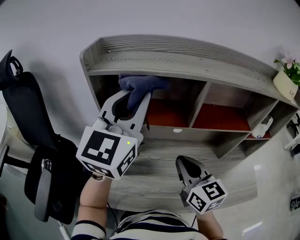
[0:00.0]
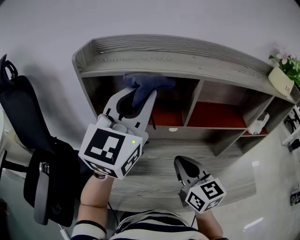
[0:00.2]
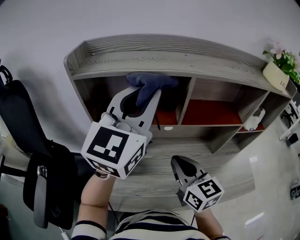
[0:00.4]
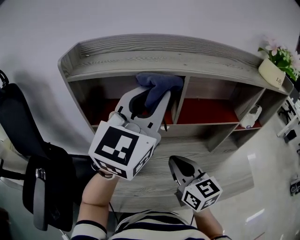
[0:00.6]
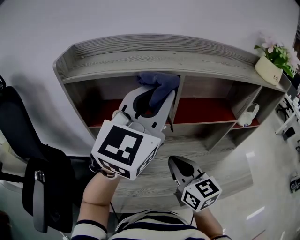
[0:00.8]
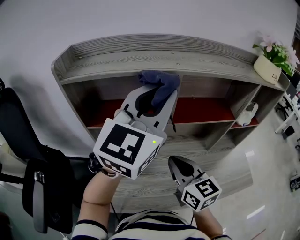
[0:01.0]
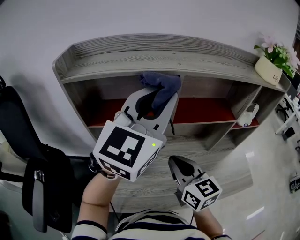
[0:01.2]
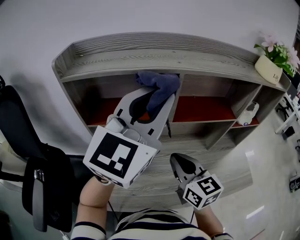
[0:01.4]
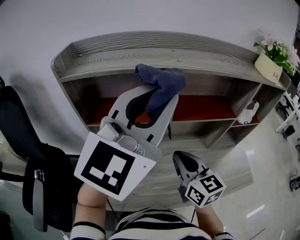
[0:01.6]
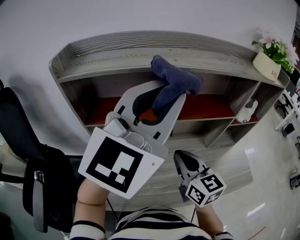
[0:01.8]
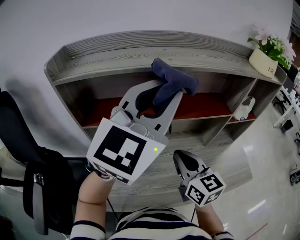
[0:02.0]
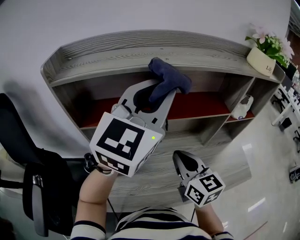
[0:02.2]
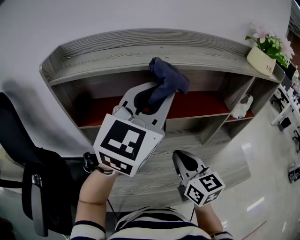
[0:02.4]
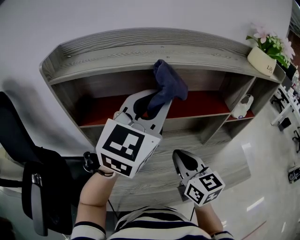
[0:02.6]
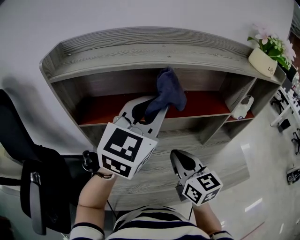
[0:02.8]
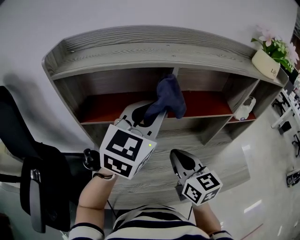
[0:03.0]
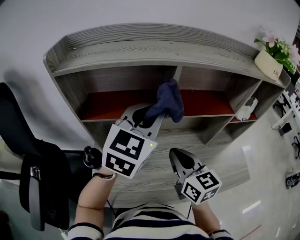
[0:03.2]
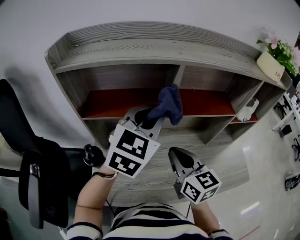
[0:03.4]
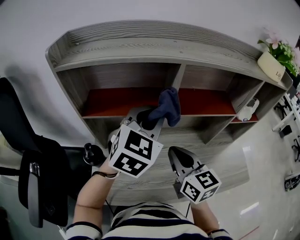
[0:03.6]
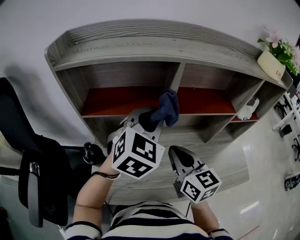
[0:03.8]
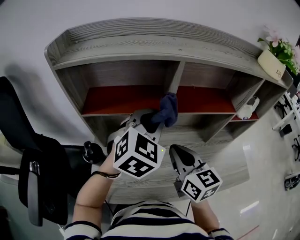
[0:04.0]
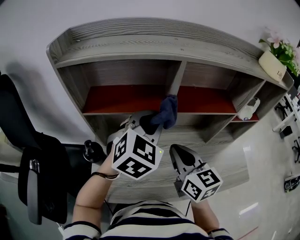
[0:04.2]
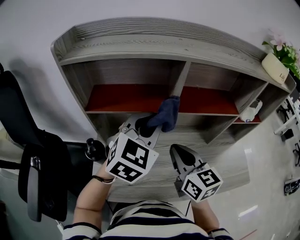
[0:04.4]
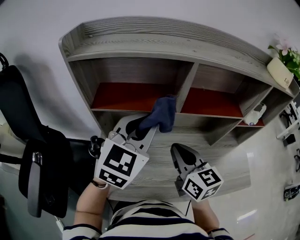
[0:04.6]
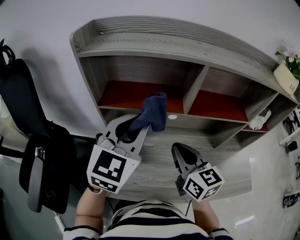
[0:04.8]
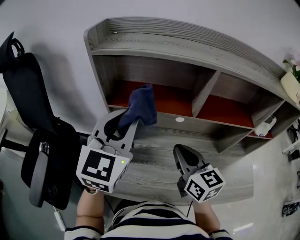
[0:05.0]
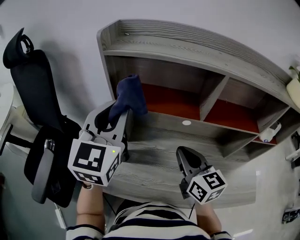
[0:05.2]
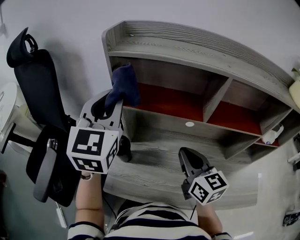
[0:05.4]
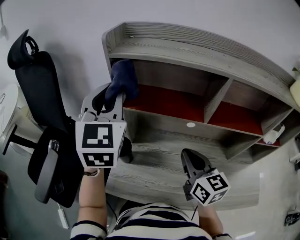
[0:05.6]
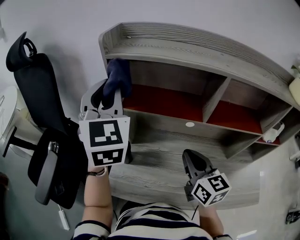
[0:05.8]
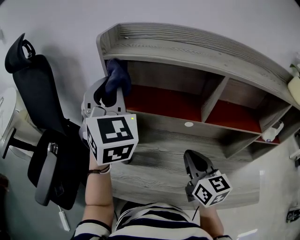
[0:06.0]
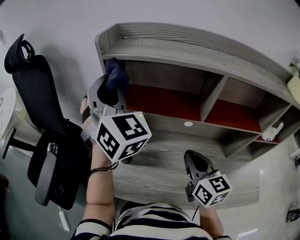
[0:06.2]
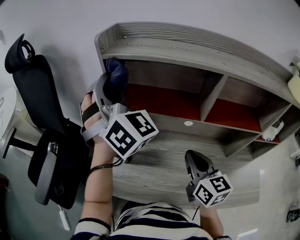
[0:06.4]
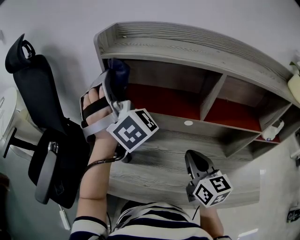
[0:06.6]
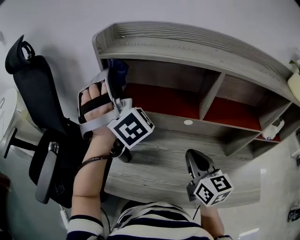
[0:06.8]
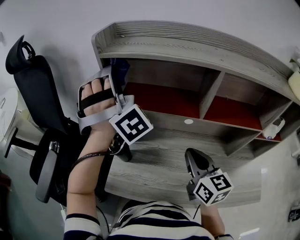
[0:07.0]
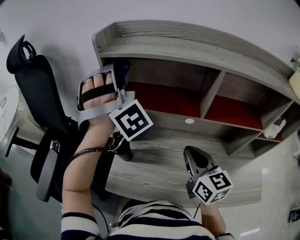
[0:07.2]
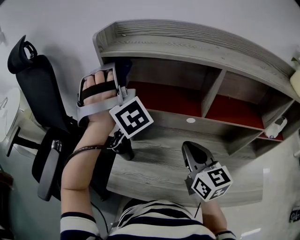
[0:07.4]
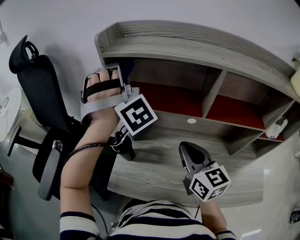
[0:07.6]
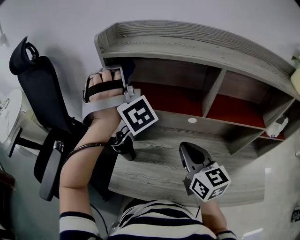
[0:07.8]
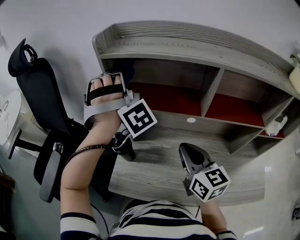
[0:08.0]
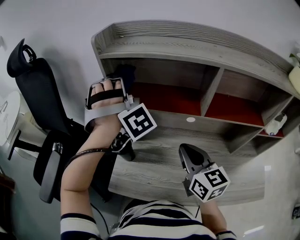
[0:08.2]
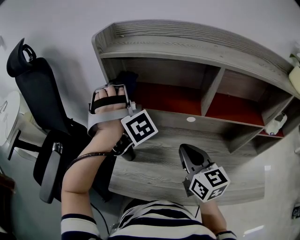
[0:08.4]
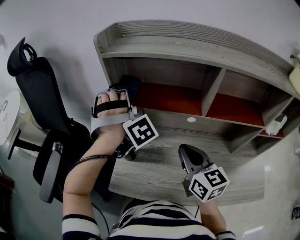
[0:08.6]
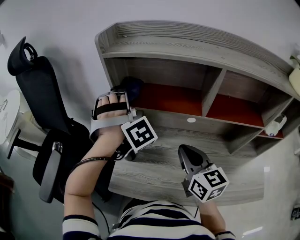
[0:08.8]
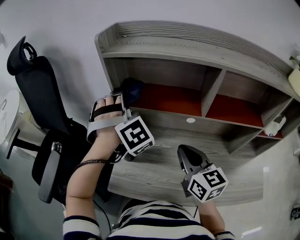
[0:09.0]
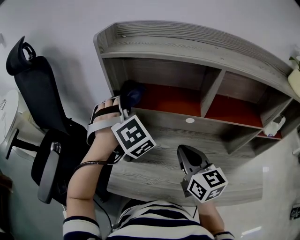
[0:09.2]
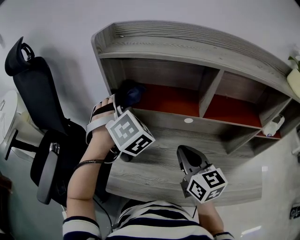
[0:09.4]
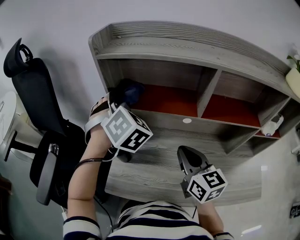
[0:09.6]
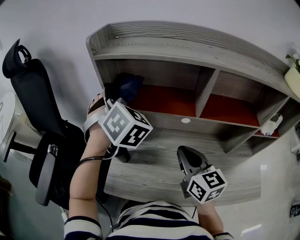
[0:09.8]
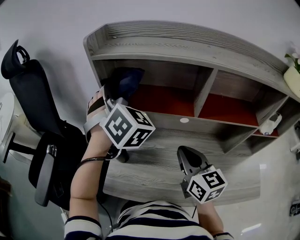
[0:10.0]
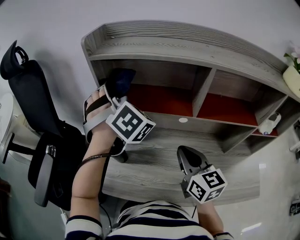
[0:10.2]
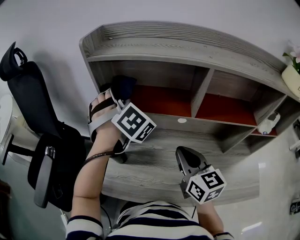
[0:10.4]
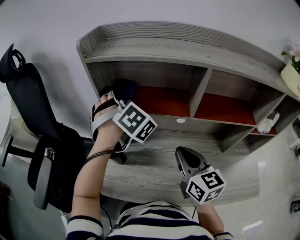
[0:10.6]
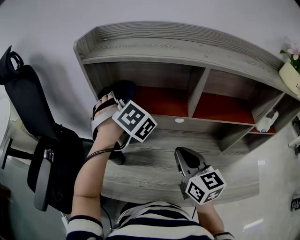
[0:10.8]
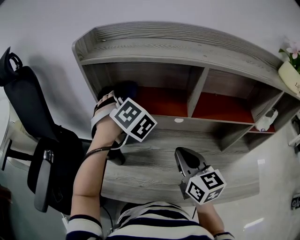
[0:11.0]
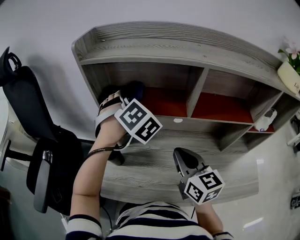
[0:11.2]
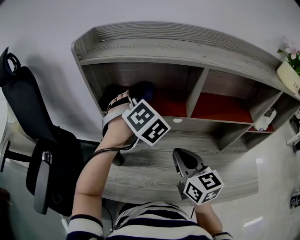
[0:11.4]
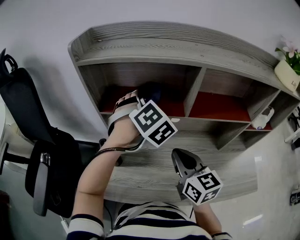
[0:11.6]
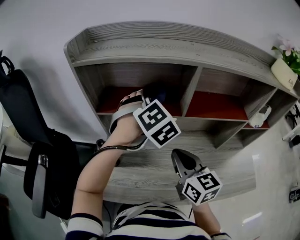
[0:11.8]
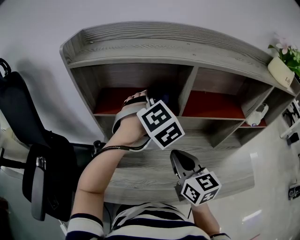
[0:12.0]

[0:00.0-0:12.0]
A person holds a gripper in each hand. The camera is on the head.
0:00.0 to 0:01.6: The left gripper travels to the right by roughly 10 cm.
0:01.6 to 0:03.0: The left gripper goes roughly 15 cm downward and forward.
0:03.0 to 0:04.4: The left gripper moves downward, some 5 cm.
0:04.4 to 0:06.0: The left gripper changes place by about 25 cm, and changes its angle by approximately 50 degrees.
0:06.0 to 0:07.6: The left gripper rotates around the line of its fingers by some 60 degrees, clockwise from behind.
0:07.6 to 0:09.0: The left gripper moves downward, approximately 10 cm, and rotates roughly 20 degrees.
0:10.4 to 0:12.0: The left gripper moves to the right and backward, some 20 cm, and turns by about 40 degrees.

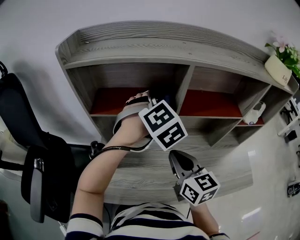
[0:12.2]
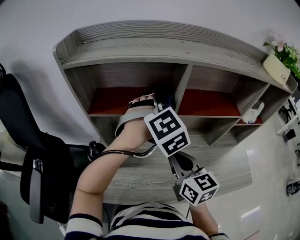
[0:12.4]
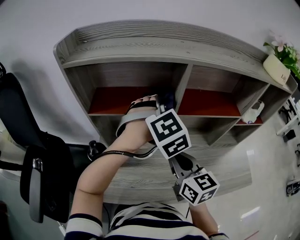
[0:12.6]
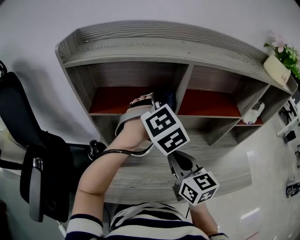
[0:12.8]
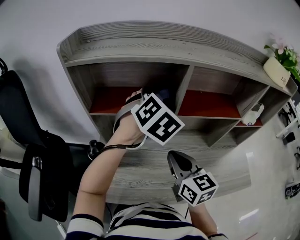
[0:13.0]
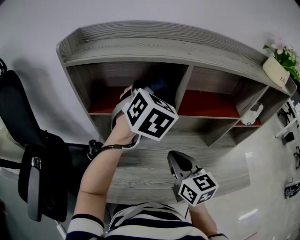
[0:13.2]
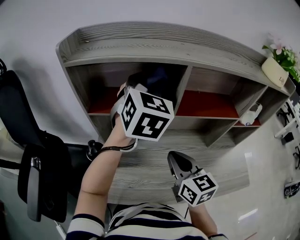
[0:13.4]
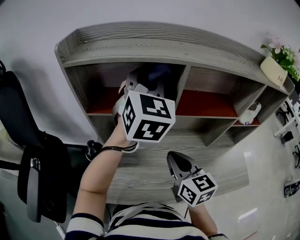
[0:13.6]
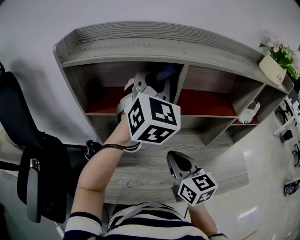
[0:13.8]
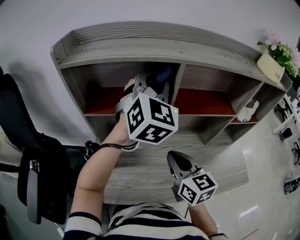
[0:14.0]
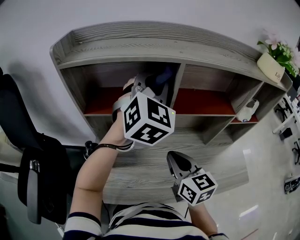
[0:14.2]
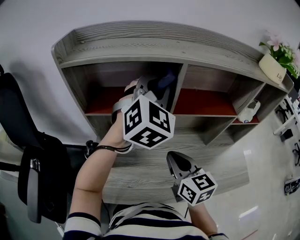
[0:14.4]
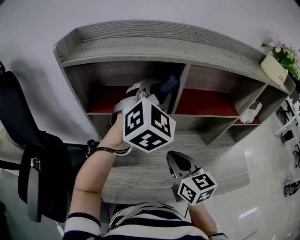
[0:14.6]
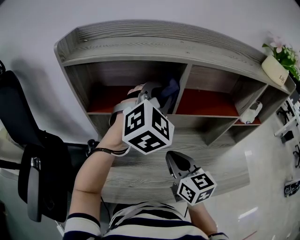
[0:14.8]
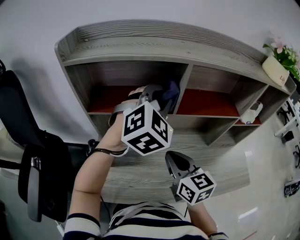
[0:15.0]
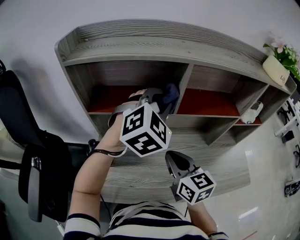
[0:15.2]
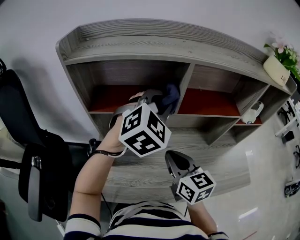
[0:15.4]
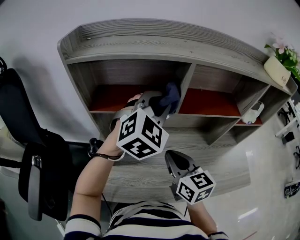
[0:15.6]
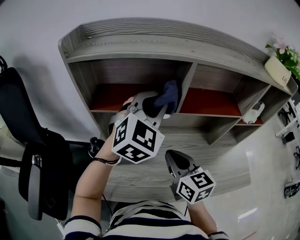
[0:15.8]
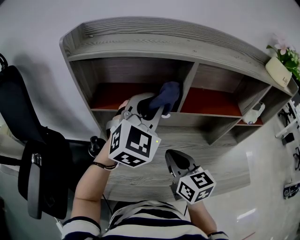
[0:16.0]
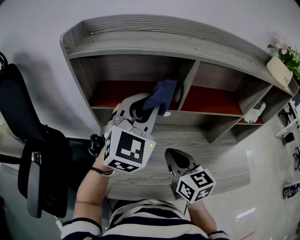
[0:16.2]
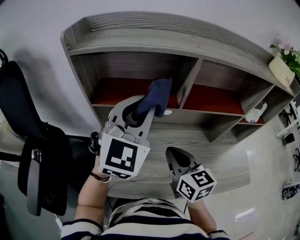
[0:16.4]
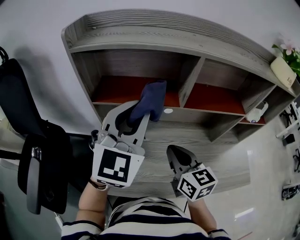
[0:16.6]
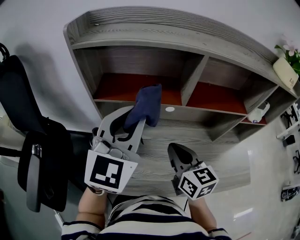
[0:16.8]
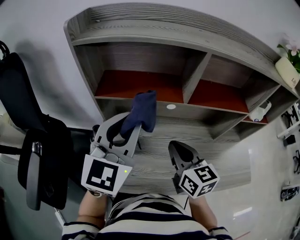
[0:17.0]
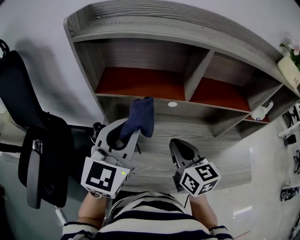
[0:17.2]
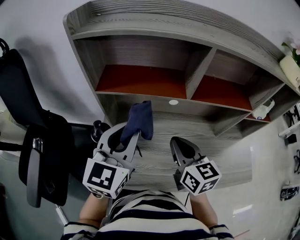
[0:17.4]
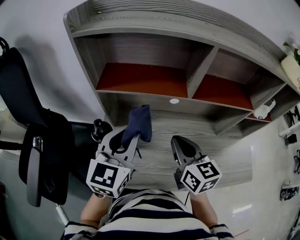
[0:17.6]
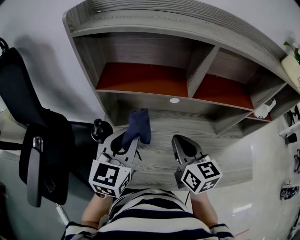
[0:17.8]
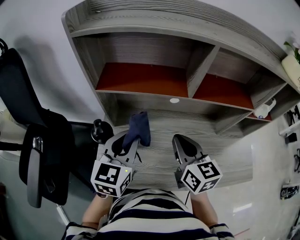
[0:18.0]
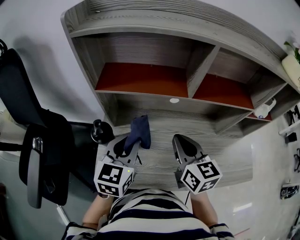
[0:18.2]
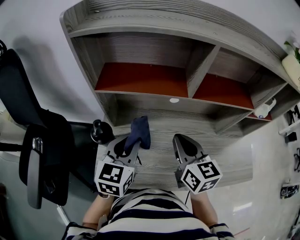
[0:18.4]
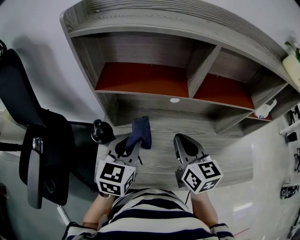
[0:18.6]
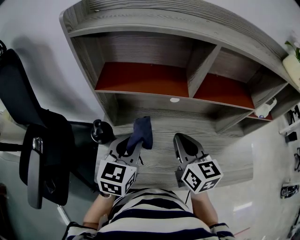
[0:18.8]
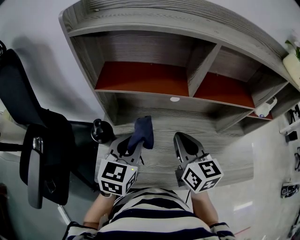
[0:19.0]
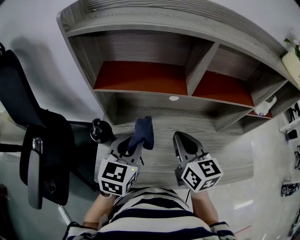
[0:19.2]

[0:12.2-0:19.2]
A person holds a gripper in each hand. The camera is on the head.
0:12.2 to 0:13.6: The left gripper is displaced upward by some 15 cm, and points its fingers approximately 30 degrees further upward.
0:13.6 to 0:15.0: The left gripper travels downward by some 5 cm, and turns by some 30 degrees.
0:15.0 to 0:16.4: The left gripper is displaced to the left and backward by roughly 10 cm, and rotates about 30 degrees.
0:16.4 to 0:17.8: The left gripper heads downward, to the left and backward, covering approximately 15 cm, and rotates approximately 30 degrees.
0:17.8 to 0:19.2: The left gripper moves about 5 cm.

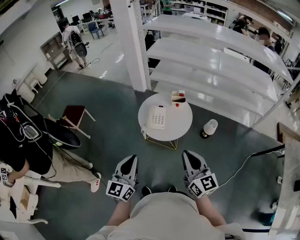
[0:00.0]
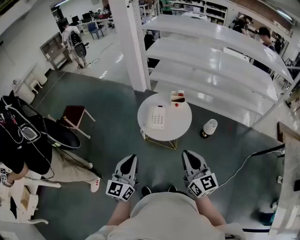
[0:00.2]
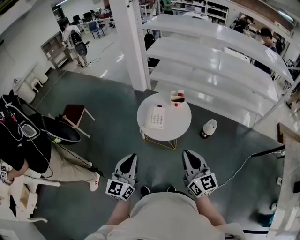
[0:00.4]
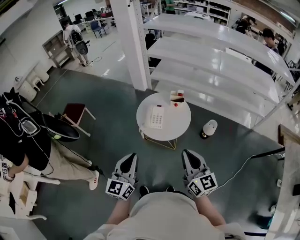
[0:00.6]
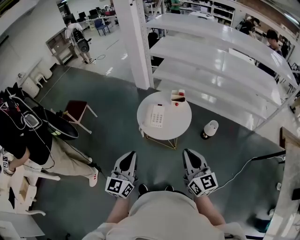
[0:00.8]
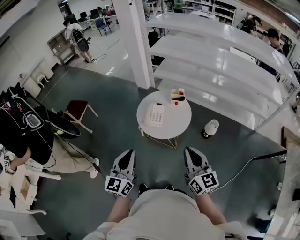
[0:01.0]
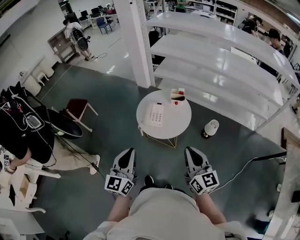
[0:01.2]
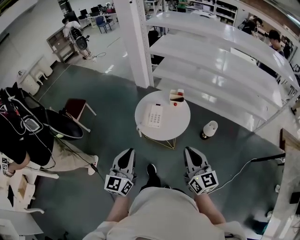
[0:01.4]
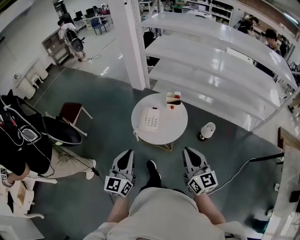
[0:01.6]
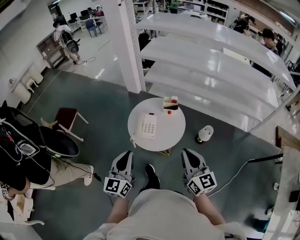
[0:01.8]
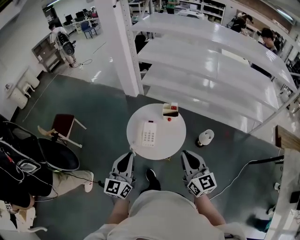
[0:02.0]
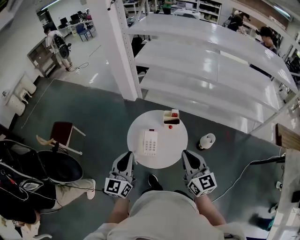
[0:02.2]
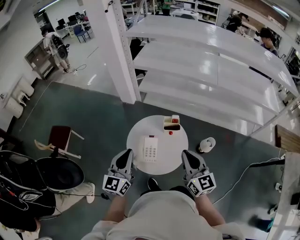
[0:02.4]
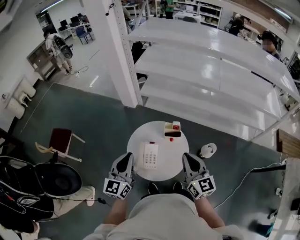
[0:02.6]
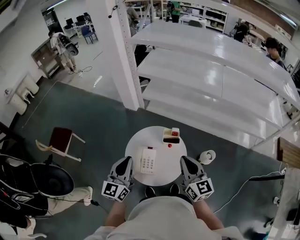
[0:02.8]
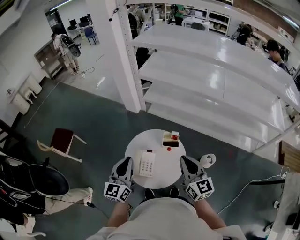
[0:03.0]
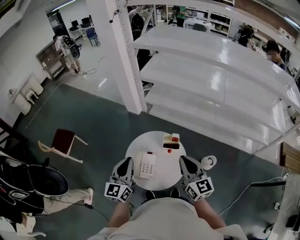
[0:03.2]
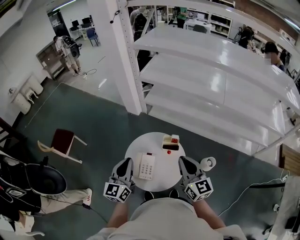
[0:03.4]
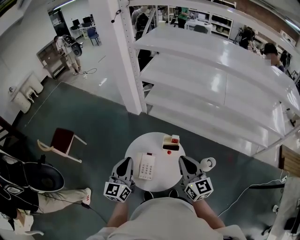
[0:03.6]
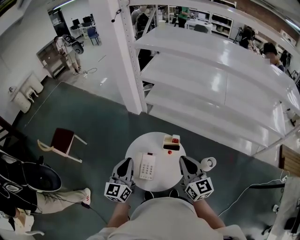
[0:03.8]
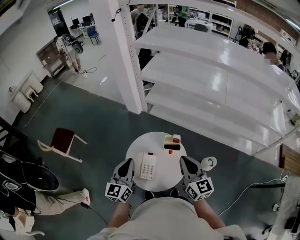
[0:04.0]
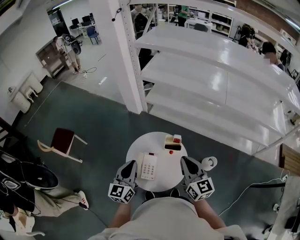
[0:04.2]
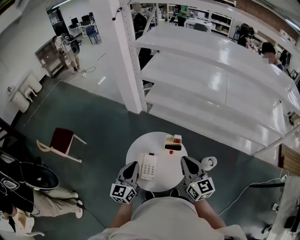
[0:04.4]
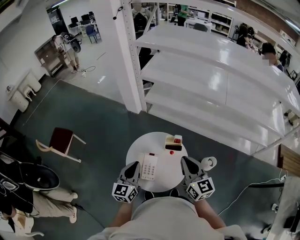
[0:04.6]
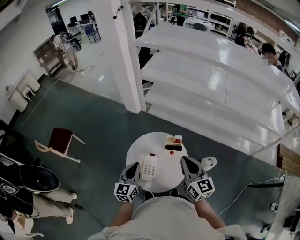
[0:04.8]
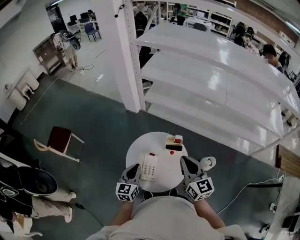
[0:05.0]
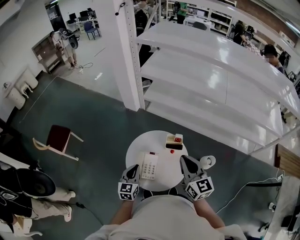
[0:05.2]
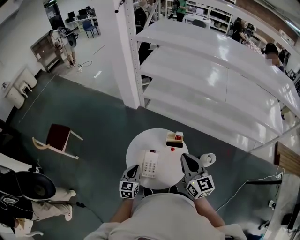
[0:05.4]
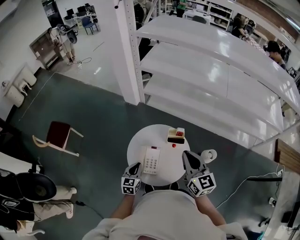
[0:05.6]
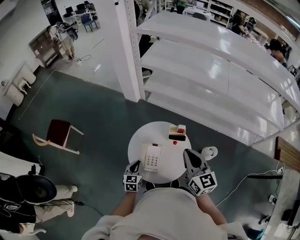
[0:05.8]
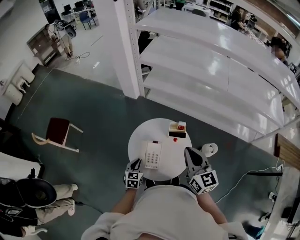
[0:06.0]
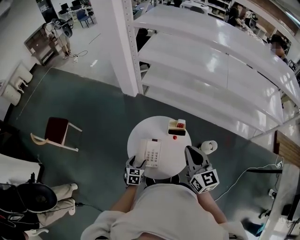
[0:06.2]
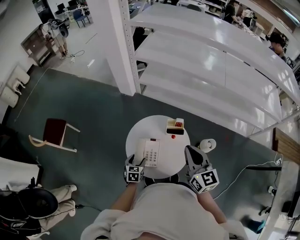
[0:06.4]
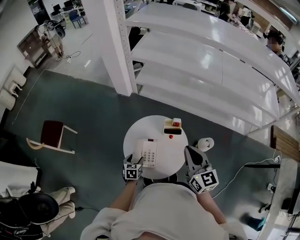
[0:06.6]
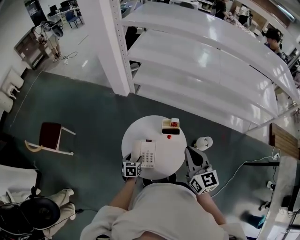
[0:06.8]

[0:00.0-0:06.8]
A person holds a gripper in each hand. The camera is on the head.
0:00.0 to 0:01.4: The two grippers go some 5 cm to the right.
0:01.4 to 0:02.8: Both grippers move forward, roughly 30 cm.
0:02.8 to 0:04.0: There are only small adjustments of the grippers.
0:04.0 to 0:05.4: The left gripper travels downward by about 20 cm, and changes its angle by roughly 20 degrees.
0:05.4 to 0:06.8: The left gripper travels downward by about 15 cm, changes its angle by roughly 30 degrees, and opens.
